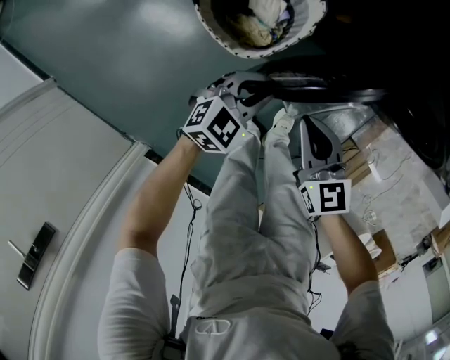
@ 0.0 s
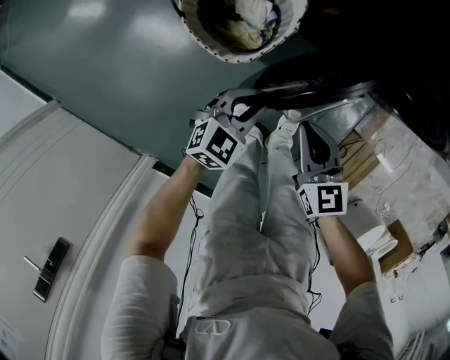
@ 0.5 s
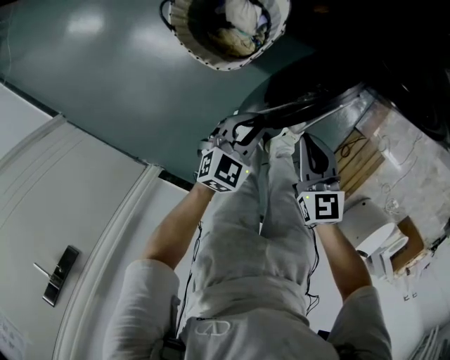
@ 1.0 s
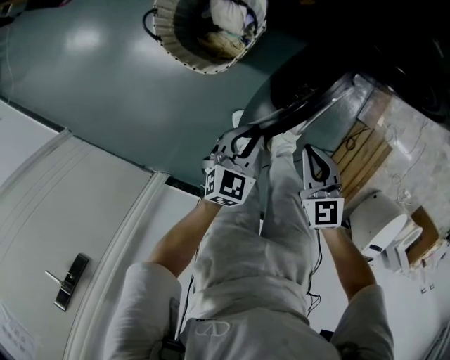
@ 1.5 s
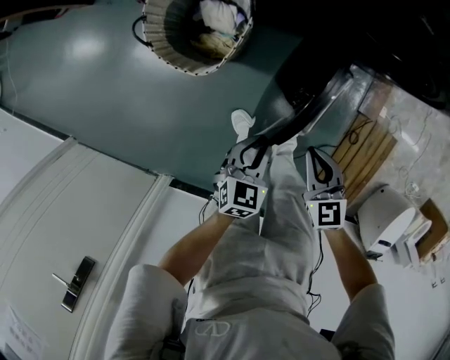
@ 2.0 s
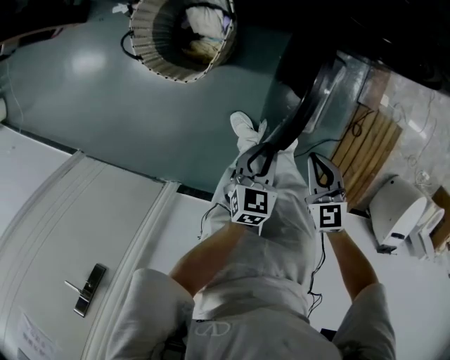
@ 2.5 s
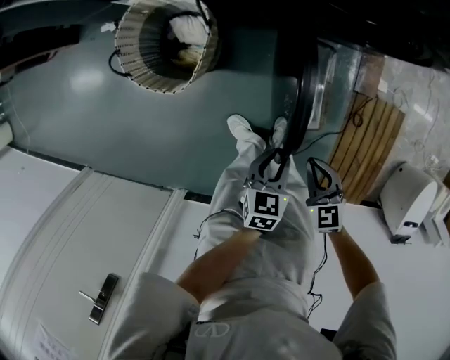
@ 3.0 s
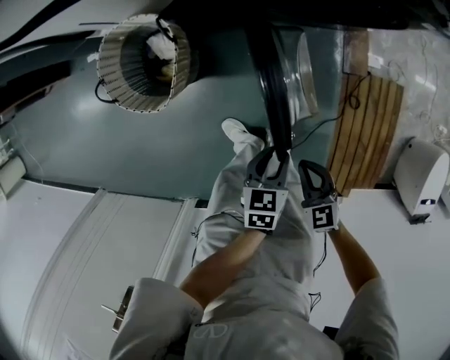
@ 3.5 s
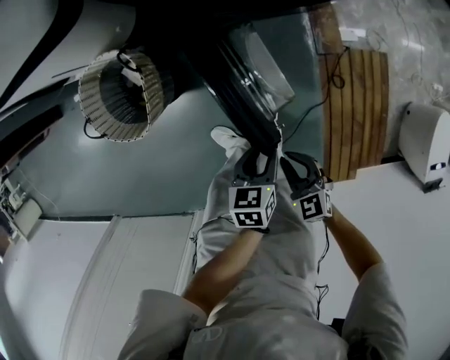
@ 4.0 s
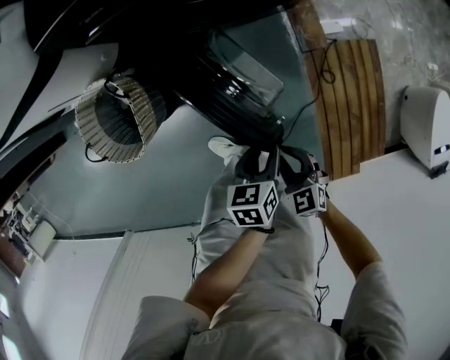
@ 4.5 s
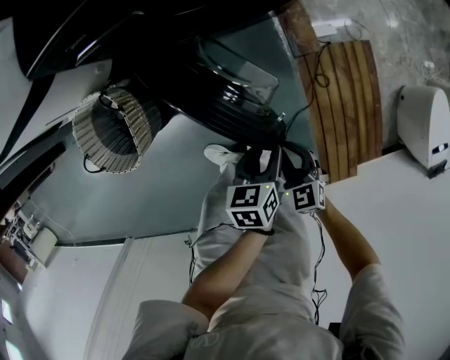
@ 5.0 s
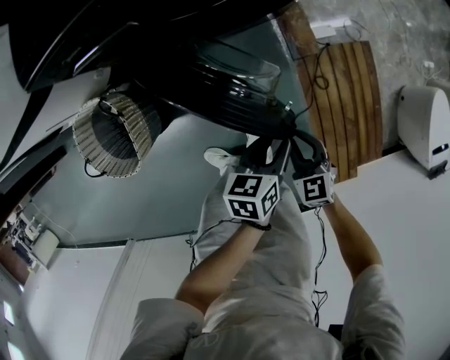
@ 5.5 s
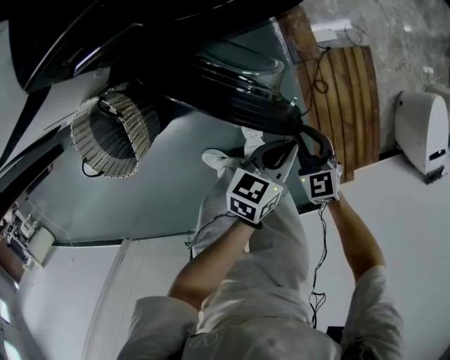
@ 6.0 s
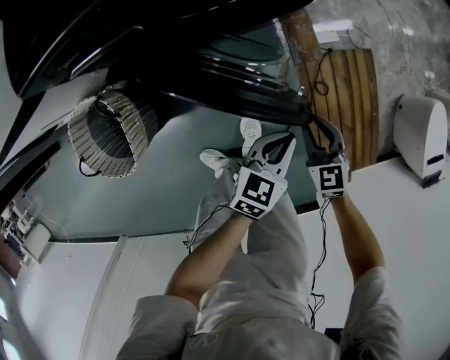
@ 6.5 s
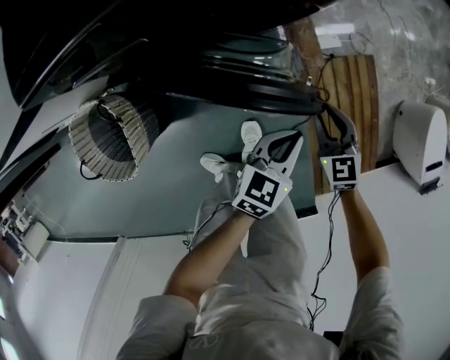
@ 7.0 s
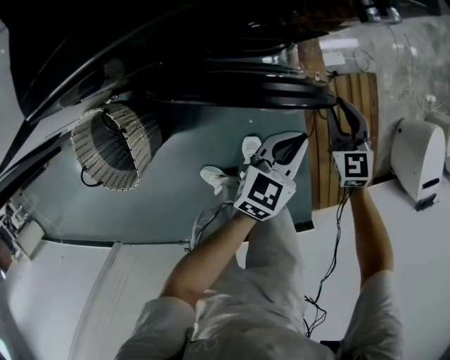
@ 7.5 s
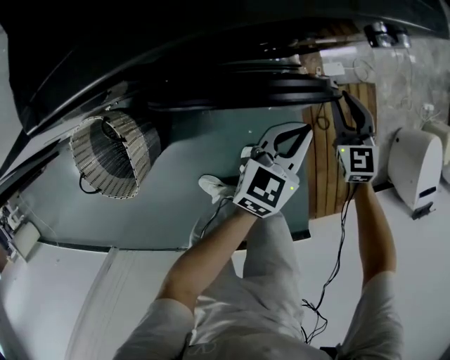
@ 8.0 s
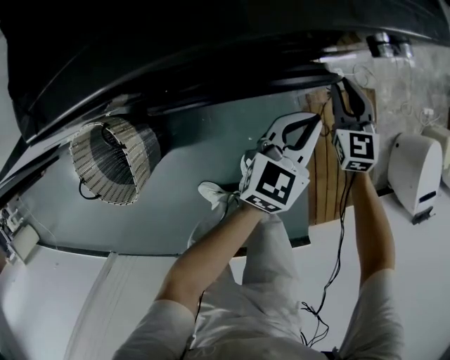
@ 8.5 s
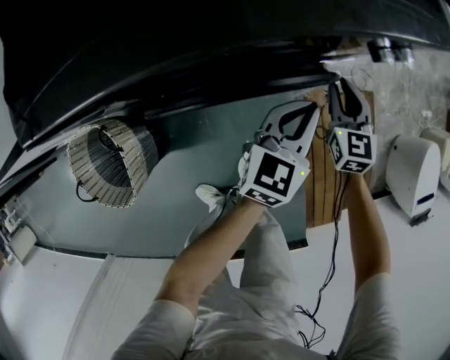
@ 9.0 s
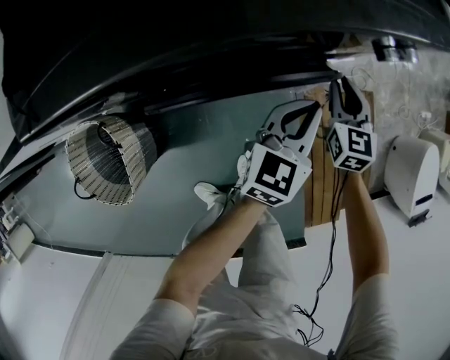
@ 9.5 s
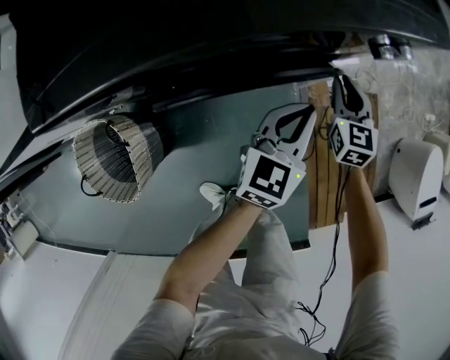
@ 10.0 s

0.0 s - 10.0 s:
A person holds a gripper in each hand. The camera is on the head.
0.0 s - 2.0 s: The two grippers go roughly 20 cm to the right and backward. The left gripper changes its angle by some 20 degrees.
2.0 s - 4.0 s: The left gripper heads to the right, covering approximately 20 cm, and rotates approximately 20 degrees; the right gripper moves to the right, backward and downward, some 20 cm.
4.0 s - 6.0 s: The left gripper ends up about 20 cm from where it was, turns by some 30 degrees, and closes up, while the right gripper moves some 20 cm.
6.0 s - 8.0 s: Both grippers move forward, about 20 cm. The left gripper changes its angle by approximately 20 degrees.
8.0 s - 10.0 s: The two grippers go some 5 cm forward.

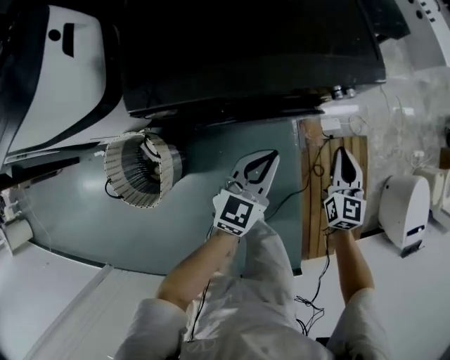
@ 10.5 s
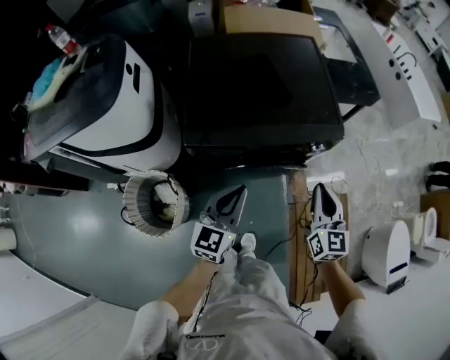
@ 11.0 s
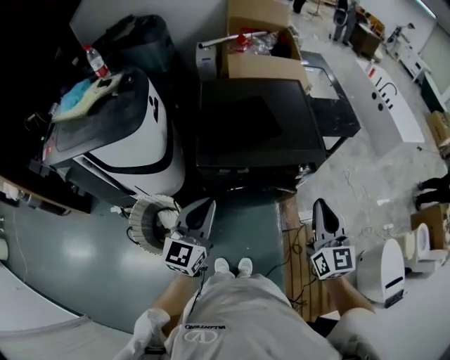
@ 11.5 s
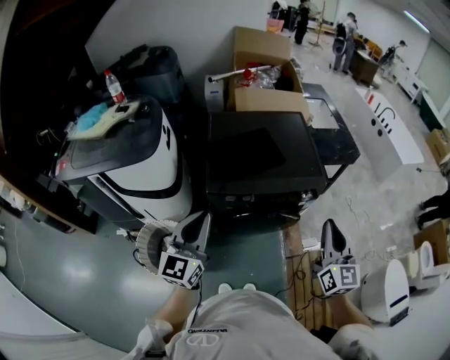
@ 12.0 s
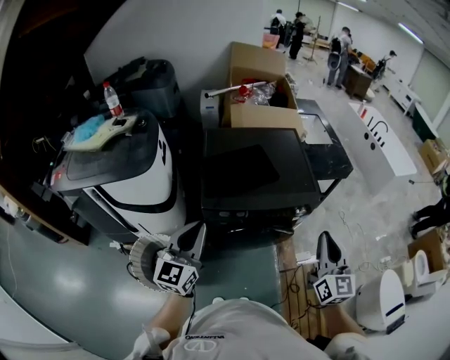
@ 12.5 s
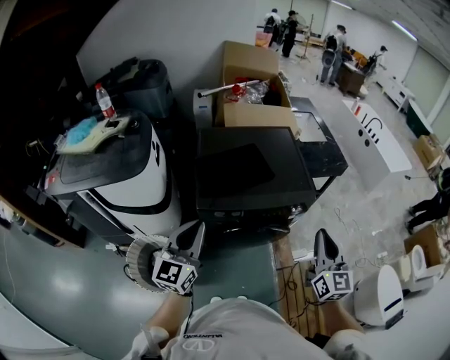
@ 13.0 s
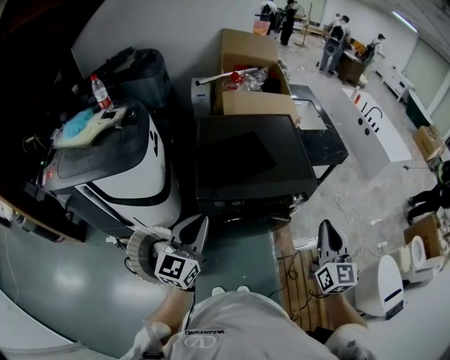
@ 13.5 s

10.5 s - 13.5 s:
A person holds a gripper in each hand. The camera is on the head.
10.5 s - 12.0 s: The right gripper moves upward, some 40 cm, and turns by some 30 degrees. Meanwhile the left gripper is displaced upward and to the left by approximately 50 cm, and changes its angle by approximately 30 degrees.
12.0 s - 13.5 s: The grippers move only a little.

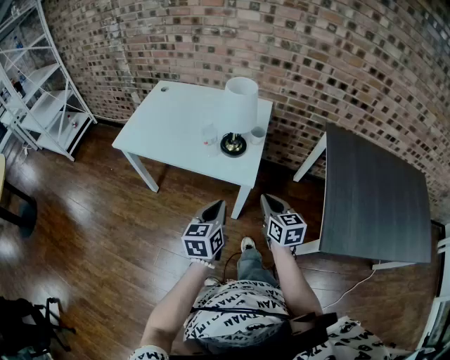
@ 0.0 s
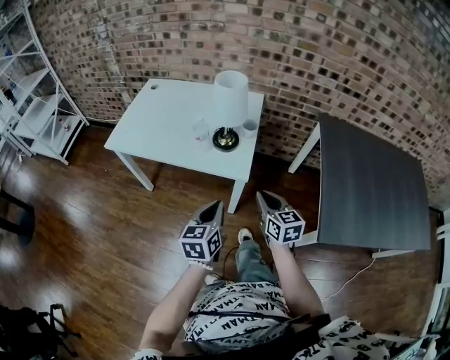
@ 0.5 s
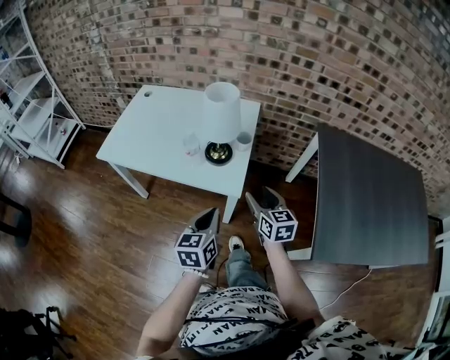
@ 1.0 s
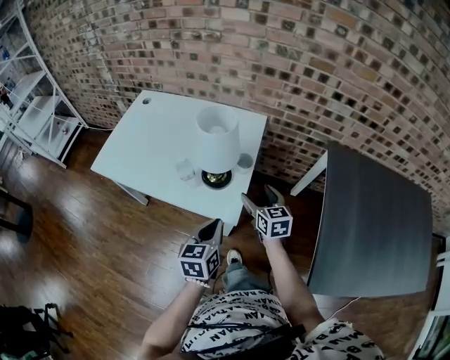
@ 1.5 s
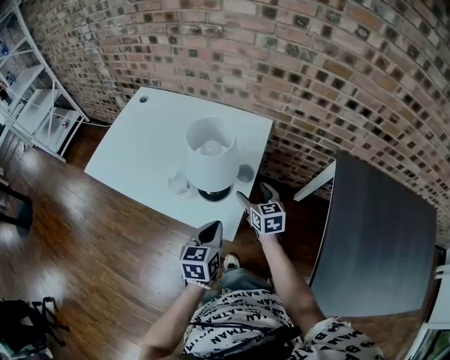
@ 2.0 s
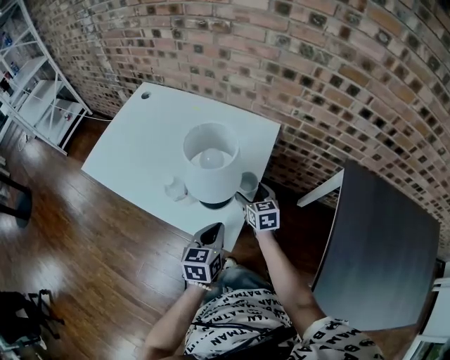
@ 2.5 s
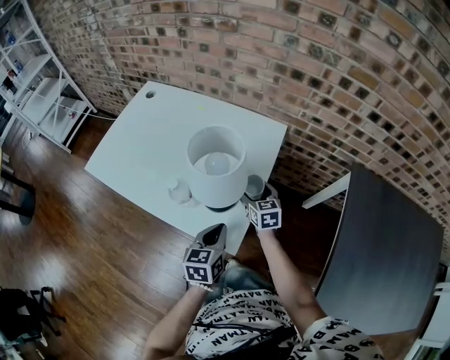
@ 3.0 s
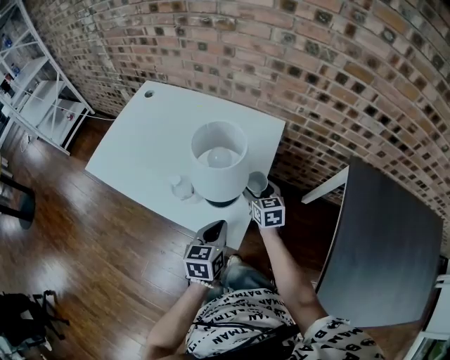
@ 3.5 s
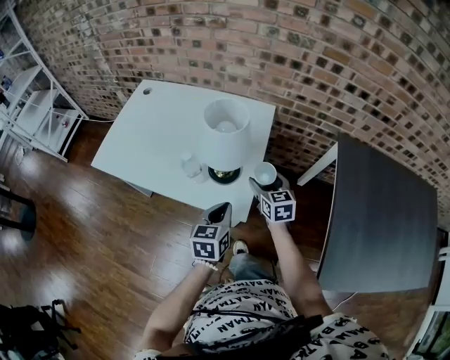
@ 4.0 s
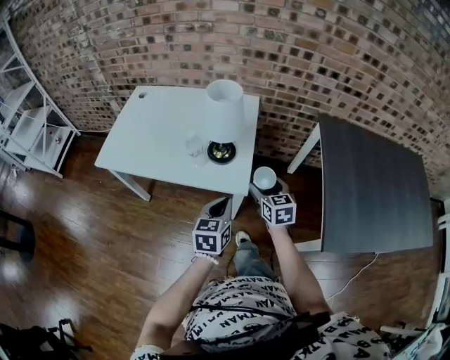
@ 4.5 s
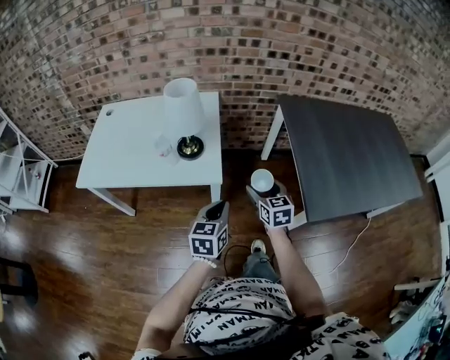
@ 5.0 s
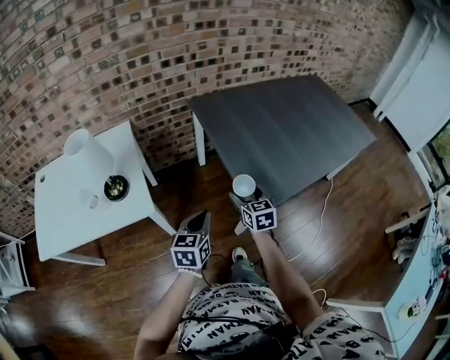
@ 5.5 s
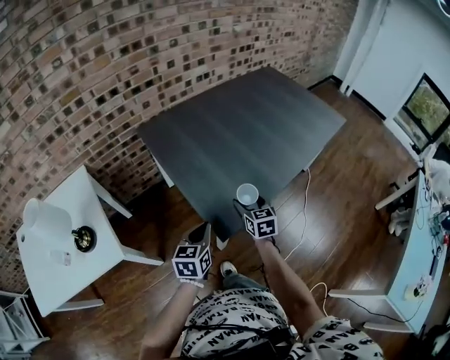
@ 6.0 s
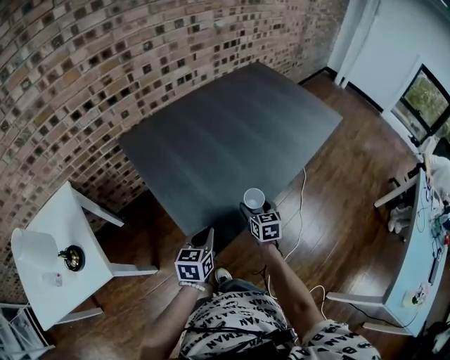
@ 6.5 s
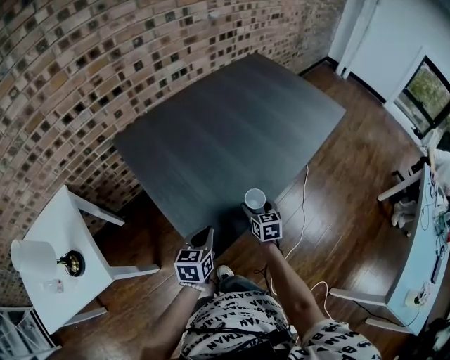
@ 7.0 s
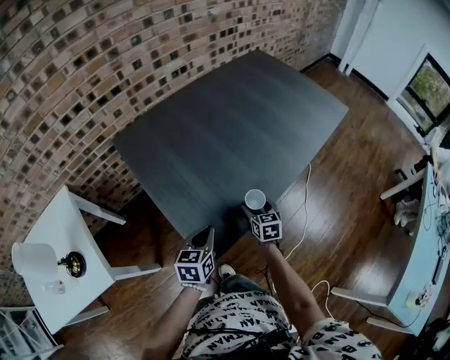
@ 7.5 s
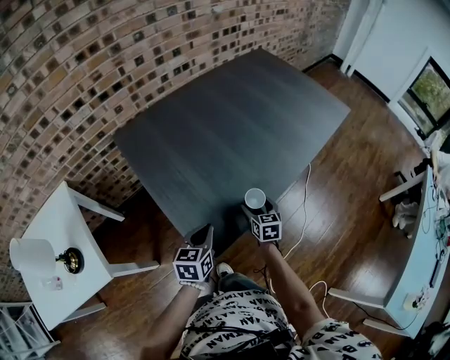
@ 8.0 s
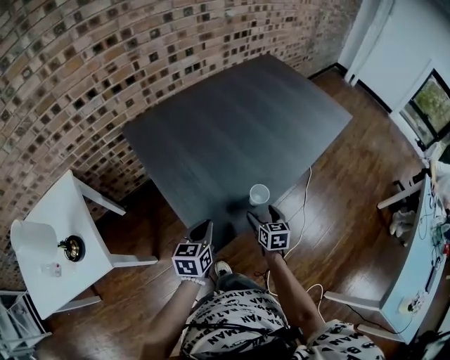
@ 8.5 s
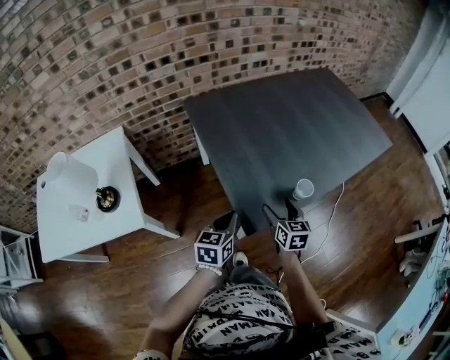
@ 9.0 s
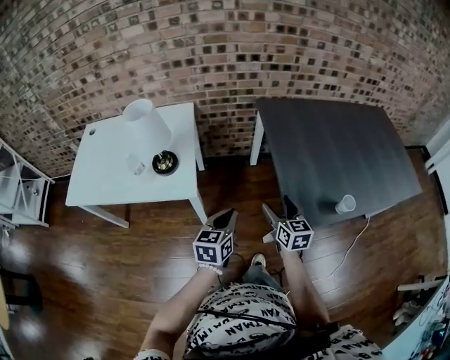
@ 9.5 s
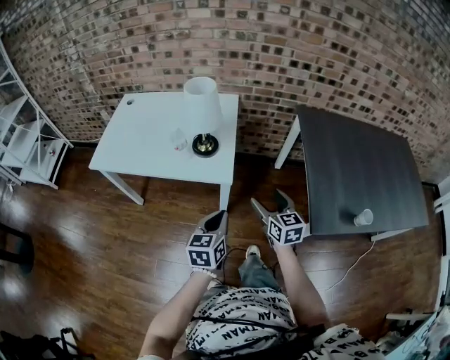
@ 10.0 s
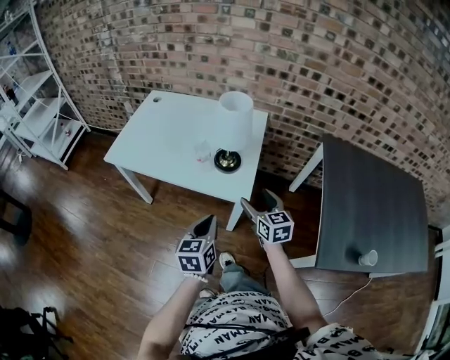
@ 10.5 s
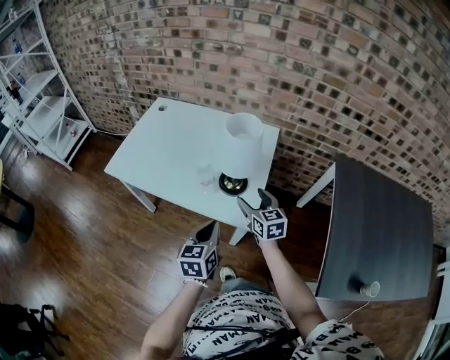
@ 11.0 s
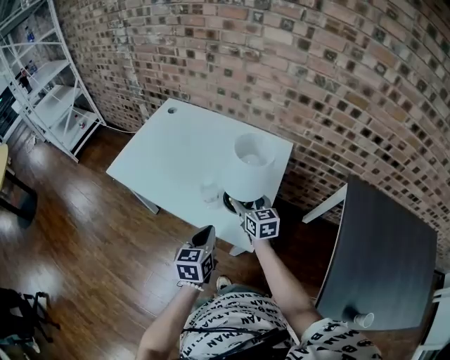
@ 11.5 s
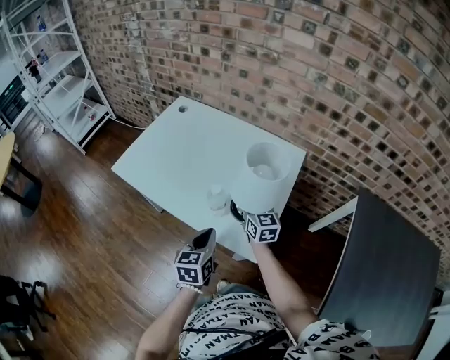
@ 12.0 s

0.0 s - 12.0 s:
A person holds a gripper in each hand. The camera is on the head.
0.0 s - 2.0 s: The right gripper travels forward by some 30 cm, and opens; the left gripper moves forward and to the right, some 20 cm.
2.0 s - 4.0 s: The right gripper reaches roughly 5 cm forward, then returns.
4.0 s - 6.0 s: Both grippers are carried roughly 50 cm. The left gripper swivels roughly 50 degrees, while the right gripper rotates approximately 50 degrees.
6.0 s - 8.0 s: The left gripper travels forward and to the right by some 15 cm, while the right gripper is displaced to the right, downward and forward by about 15 cm.
8.0 s - 10.0 s: The two grippers travel together, roughly 50 cm. The right gripper turns by roughly 50 degrees, while the left gripper turns by roughly 50 degrees.
10.0 s - 12.0 s: The left gripper goes about 25 cm forward and to the left, and changes its angle by some 20 degrees, while the right gripper goes approximately 40 cm forward and to the left, and rotates about 20 degrees.

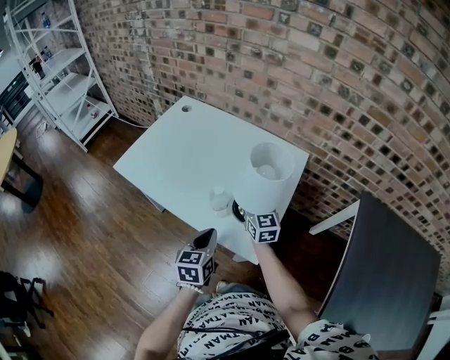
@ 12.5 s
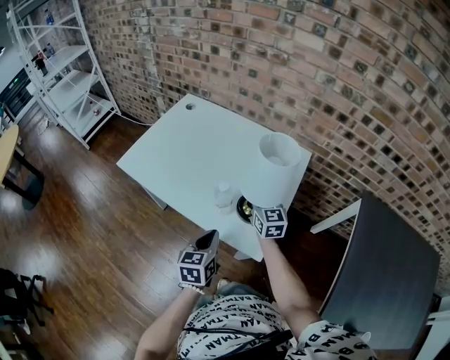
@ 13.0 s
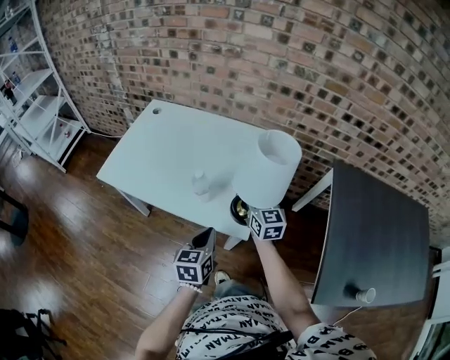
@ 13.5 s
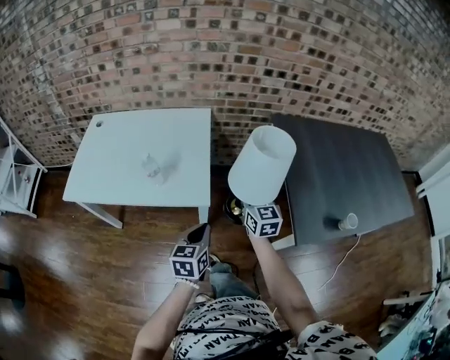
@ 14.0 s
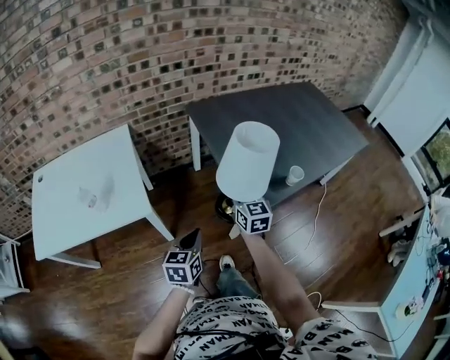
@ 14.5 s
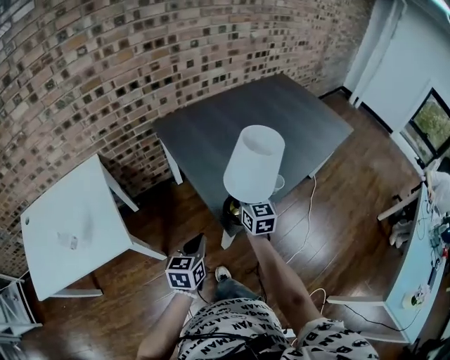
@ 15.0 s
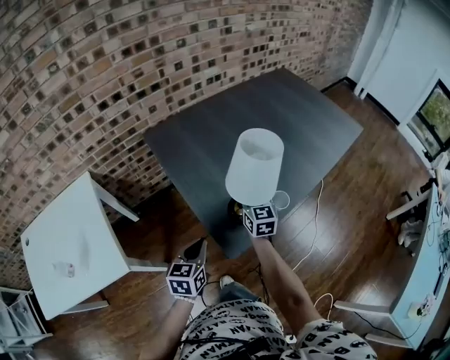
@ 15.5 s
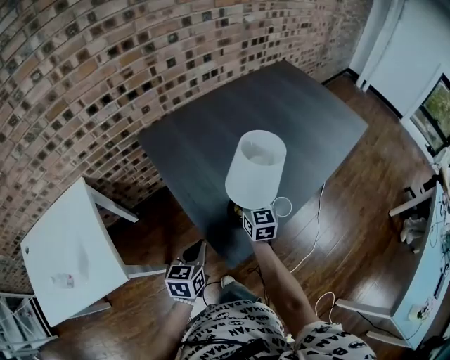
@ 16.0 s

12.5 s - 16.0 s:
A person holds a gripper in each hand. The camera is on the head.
12.5 s - 14.5 s: The left gripper ends up roughly 40 cm from where it was, and rotates about 50 degrees. Meanwhile the right gripper ends up approximately 60 cm from where it was, and rotates about 50 degrees.
14.5 s - 16.0 s: The grippers both shift forward and to the right by roughly 25 cm.
